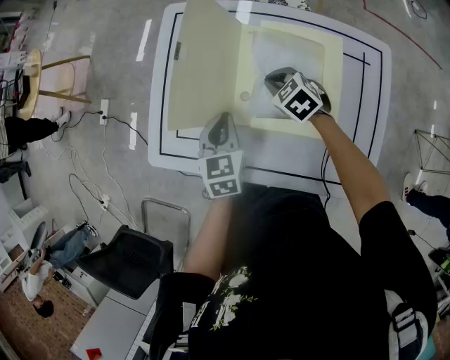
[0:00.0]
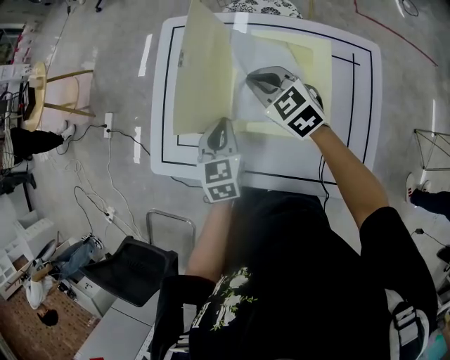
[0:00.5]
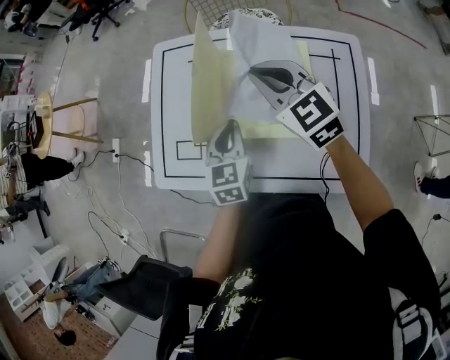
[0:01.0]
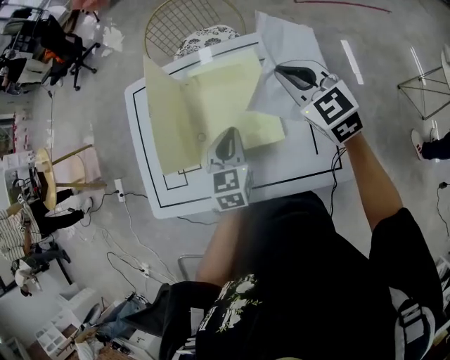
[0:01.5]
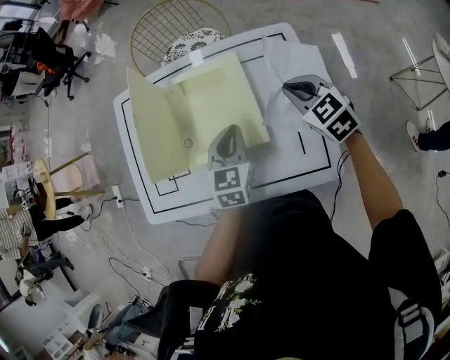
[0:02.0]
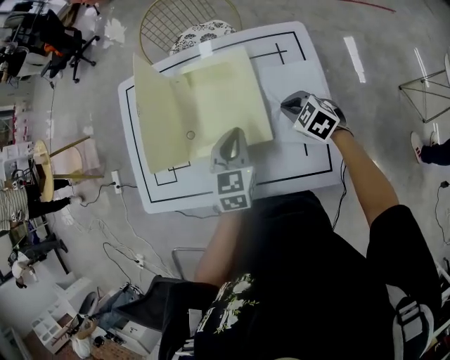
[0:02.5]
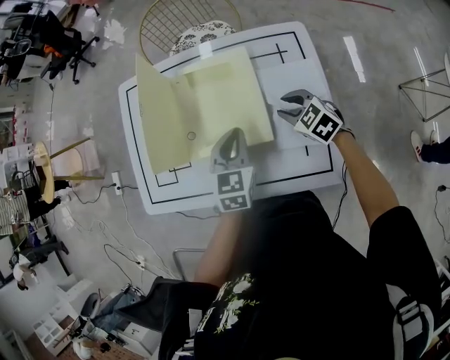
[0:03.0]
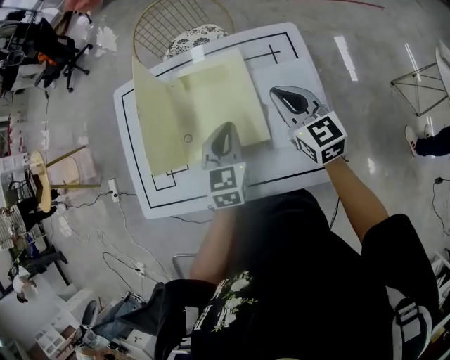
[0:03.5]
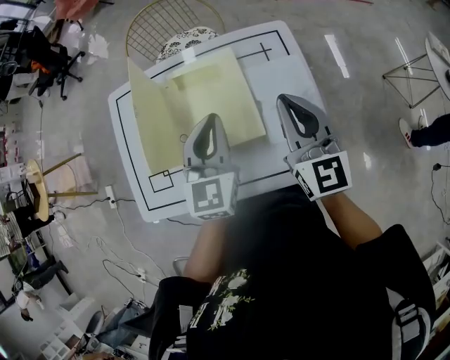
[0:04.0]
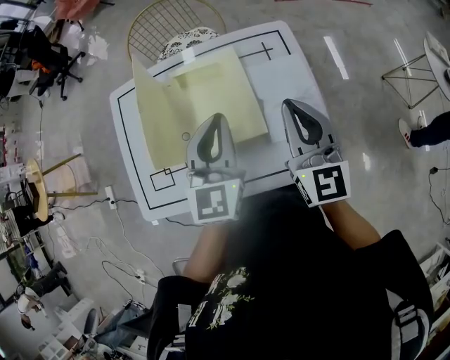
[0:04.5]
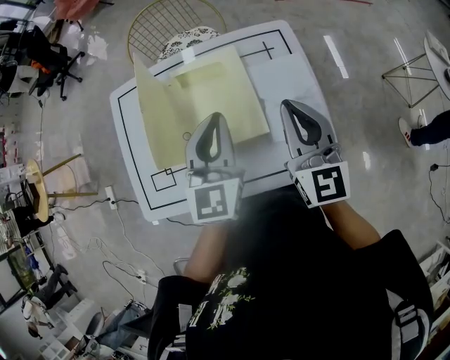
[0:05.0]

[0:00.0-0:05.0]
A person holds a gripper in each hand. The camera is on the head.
0:00.0 to 0:02.5: The left gripper shifts by roughly 20 cm, and changes its angle by approximately 20 degrees, while the right gripper reaches roughly 25 cm upward, then returns.
0:02.5 to 0:05.0: The left gripper moves upward, about 15 cm, and turns by some 20 degrees, while the right gripper is displaced upward by some 25 cm, tilts its fingers roughly 50 degrees upward, and opens, then closes again.

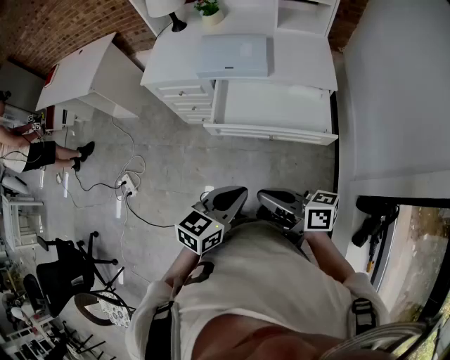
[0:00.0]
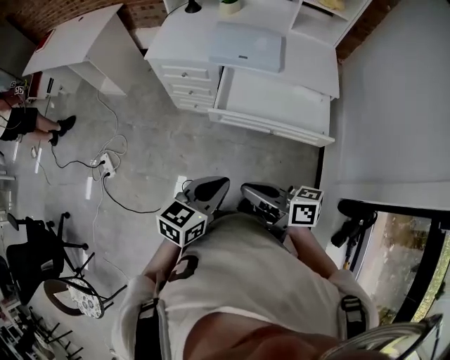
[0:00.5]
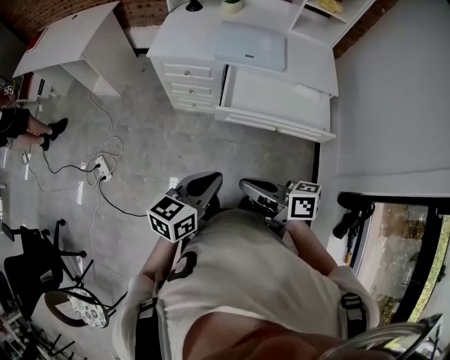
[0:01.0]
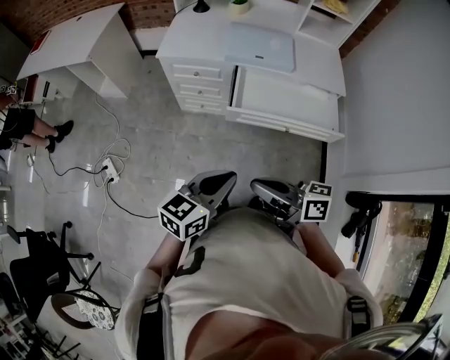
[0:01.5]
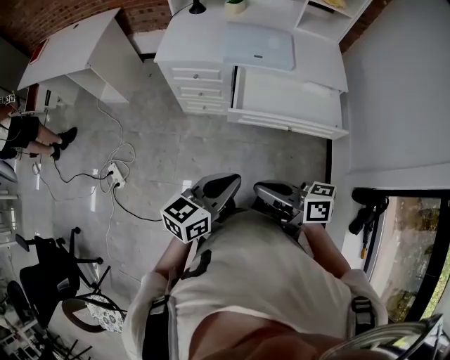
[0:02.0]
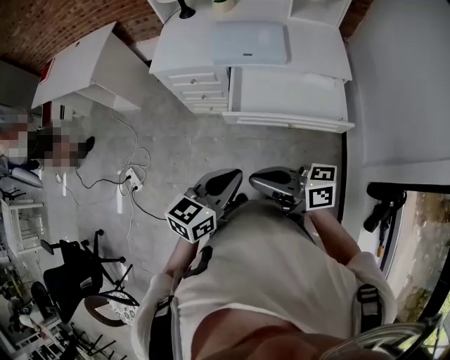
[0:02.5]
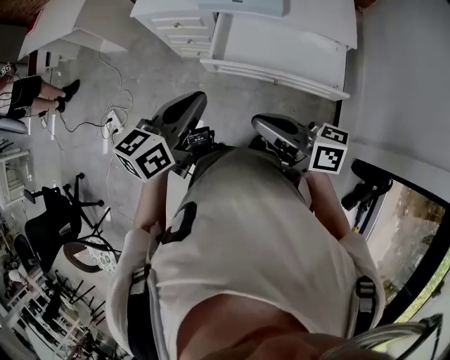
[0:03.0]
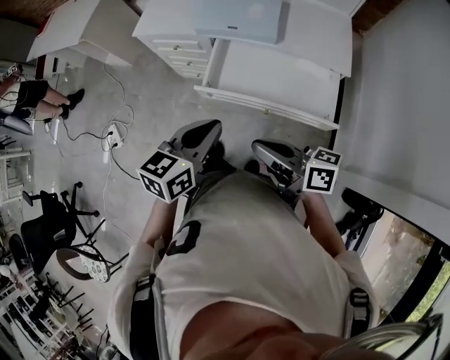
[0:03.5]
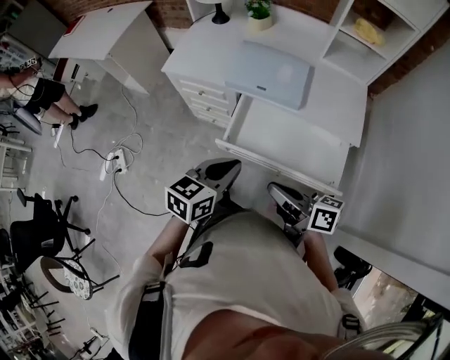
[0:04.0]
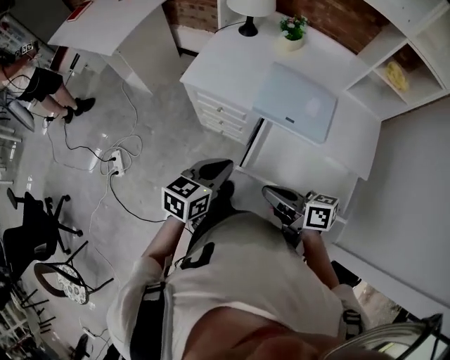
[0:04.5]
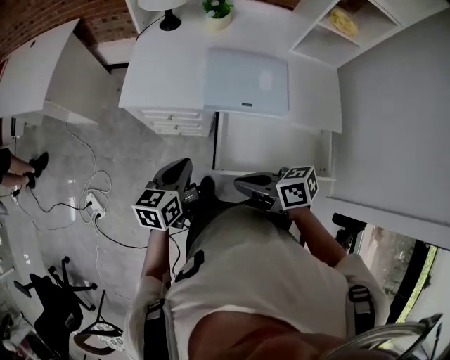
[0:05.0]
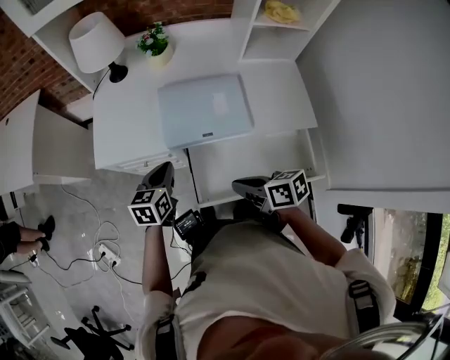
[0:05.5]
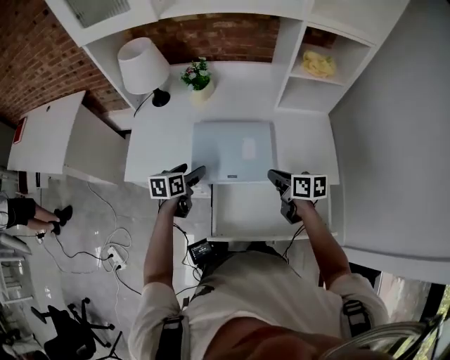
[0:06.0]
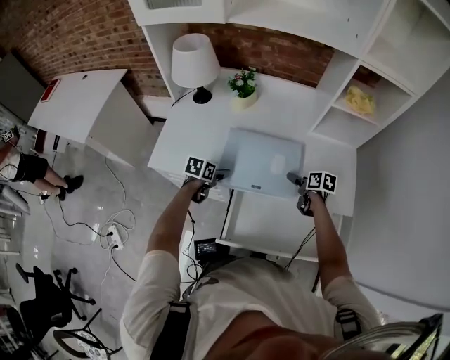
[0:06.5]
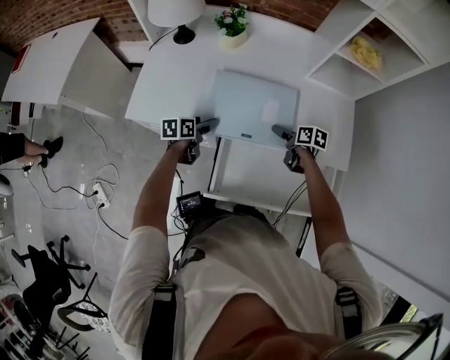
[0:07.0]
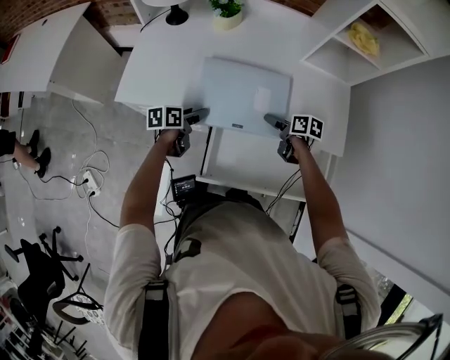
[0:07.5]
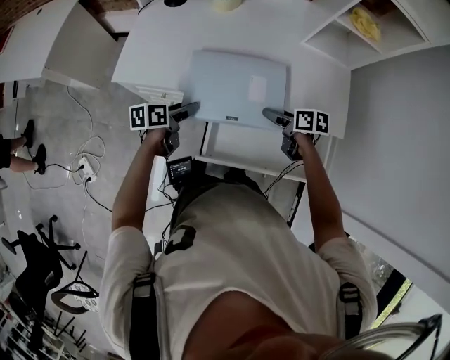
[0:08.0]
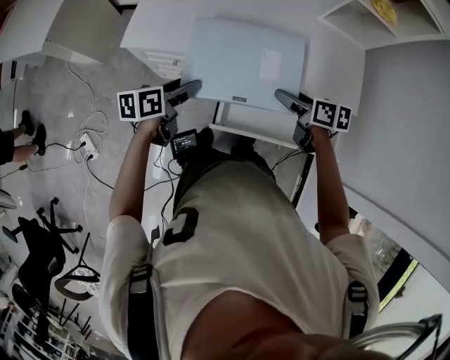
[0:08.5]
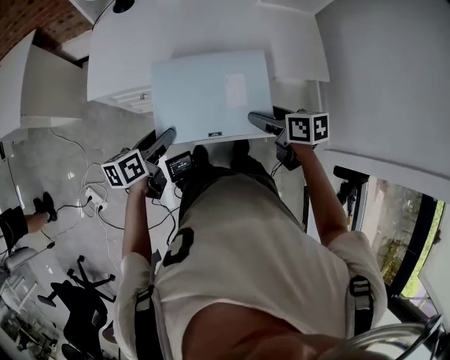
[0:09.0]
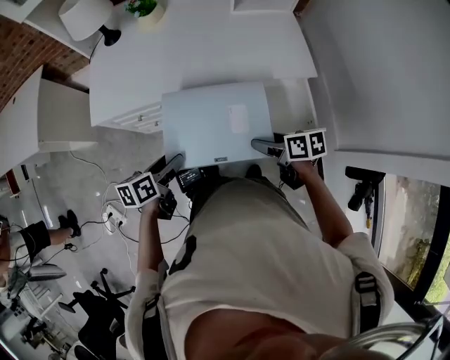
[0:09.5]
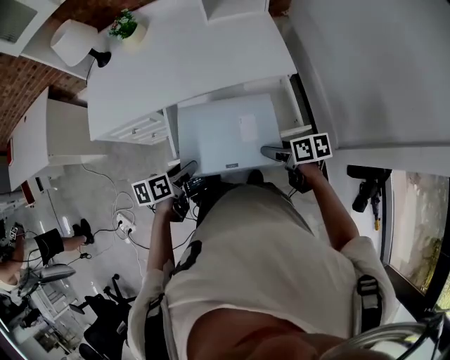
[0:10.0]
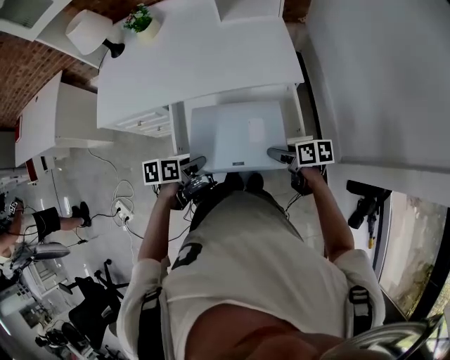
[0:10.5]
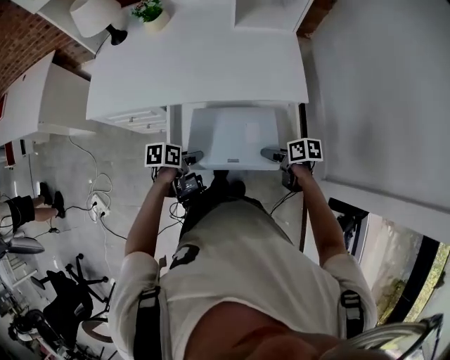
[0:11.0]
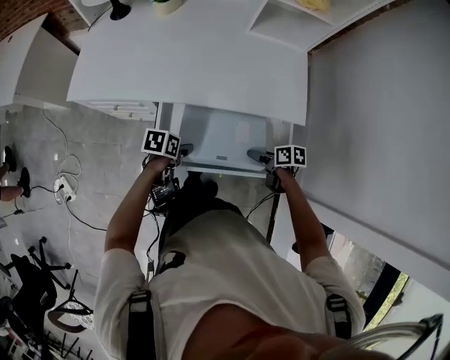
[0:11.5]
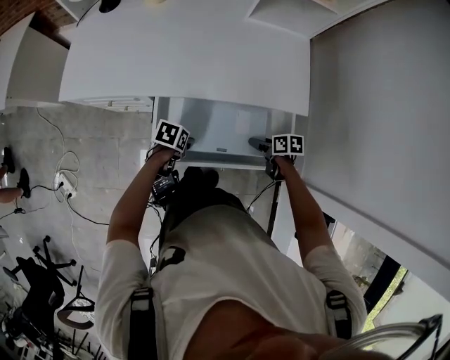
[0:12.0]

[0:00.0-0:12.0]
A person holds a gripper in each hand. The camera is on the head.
0:00.0 to 0:02.0: Both grippers move to the left, roughly 20 cm.
0:02.0 to 0:04.0: The left gripper is displaced forward and to the right by some 25 cm; the right gripper is displaced to the right and forward by roughly 25 cm.
0:04.0 to 0:06.0: The grippers both shift forward by about 35 cm. The left gripper opens. The right gripper swivels roughly 40 degrees.
0:06.0 to 0:08.0: The left gripper is displaced backward and downward by roughly 10 cm, and changes its angle by about 20 degrees. Meanwhile the right gripper travels downward by some 10 cm, and opens.
0:08.0 to 0:10.0: Both grippers travel together backward and to the right, approximately 30 cm.
0:10.0 to 0:12.0: The left gripper shifts roughly 15 cm downward, and swivels about 30 degrees. Meanwhile the right gripper changes place by about 20 cm.

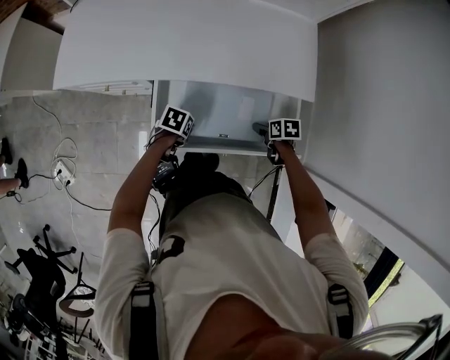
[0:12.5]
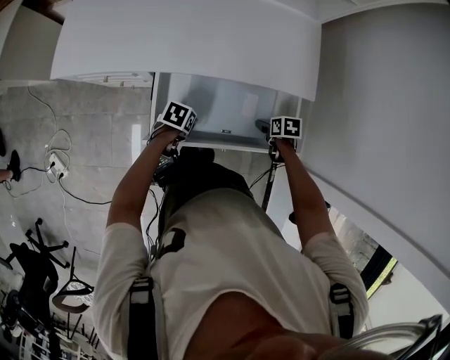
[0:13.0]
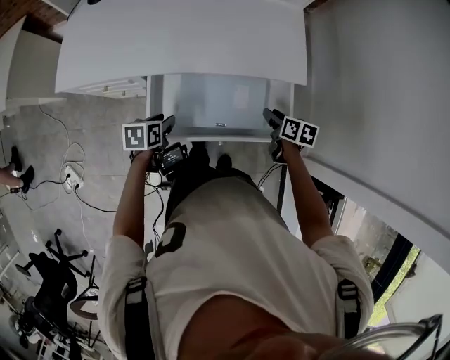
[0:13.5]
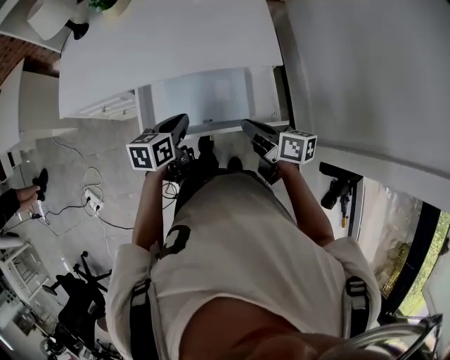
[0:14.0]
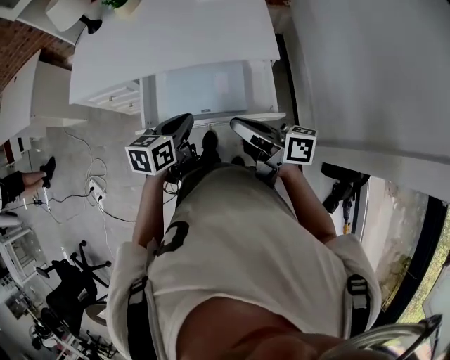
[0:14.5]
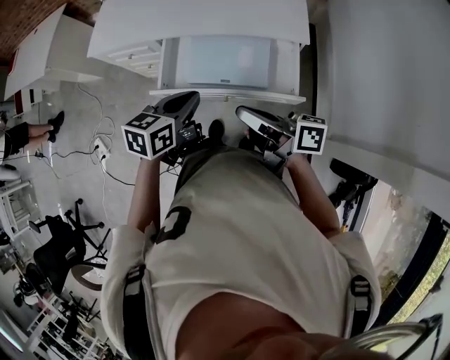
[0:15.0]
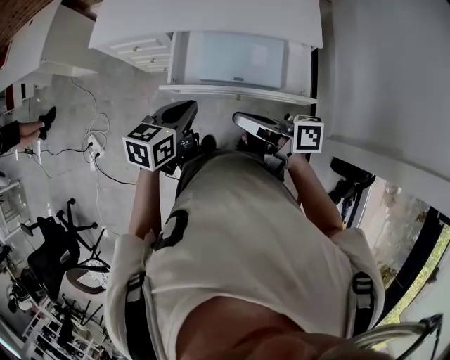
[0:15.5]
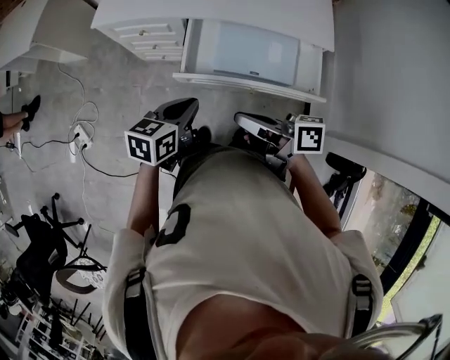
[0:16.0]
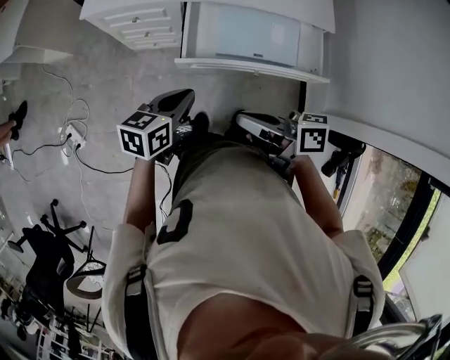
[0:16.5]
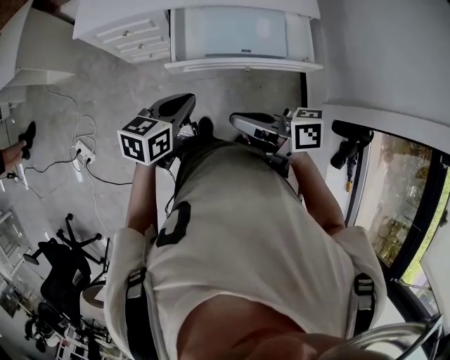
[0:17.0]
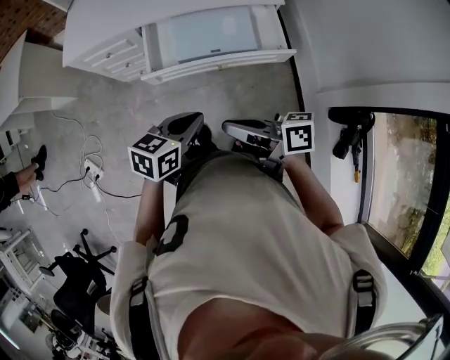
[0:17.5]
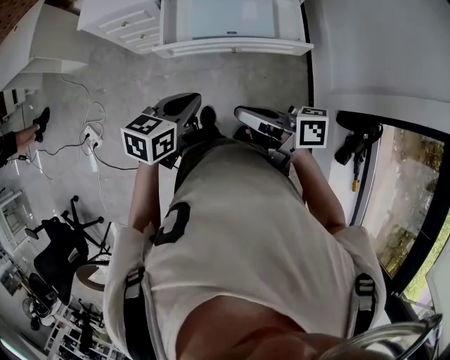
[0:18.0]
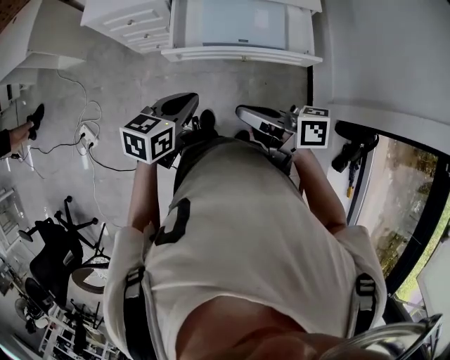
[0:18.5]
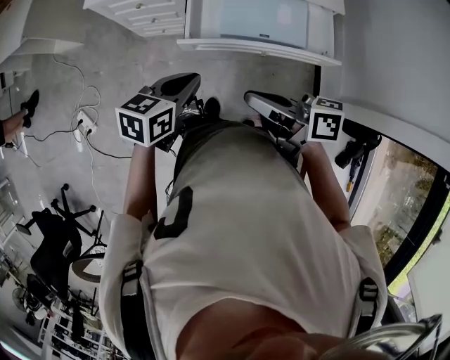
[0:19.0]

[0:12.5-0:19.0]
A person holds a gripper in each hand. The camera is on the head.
0:12.5 to 0:14.5: The two grippers go about 30 cm upward. The right gripper points its fingers approximately 70 degrees further upward, and closes; the left gripper tilts its fingers about 30 degrees upward, and closes its fingers.
0:14.5 to 0:17.0: Both grippers travel together to the left and backward, about 25 cm.
0:17.0 to 0:19.0: The right gripper reaches approximately 10 cm backward, then returns, while the left gripper reaches roughly 10 cm to the right, then returns.

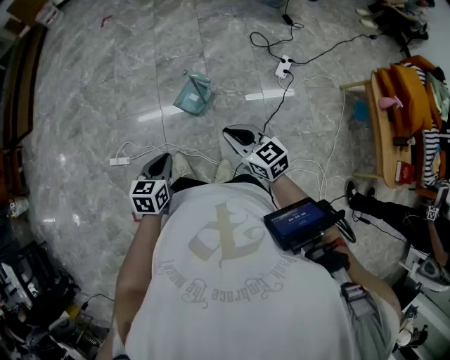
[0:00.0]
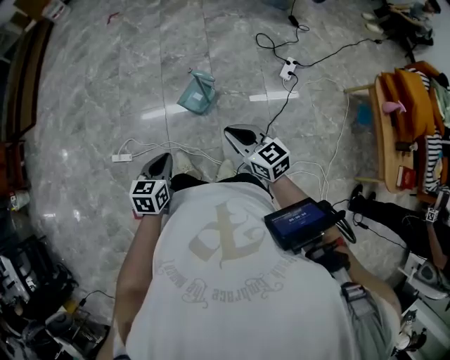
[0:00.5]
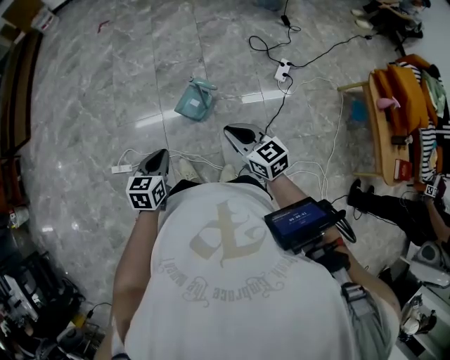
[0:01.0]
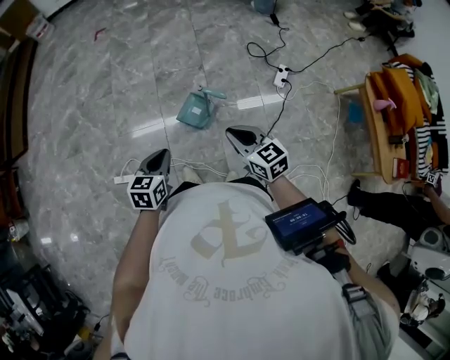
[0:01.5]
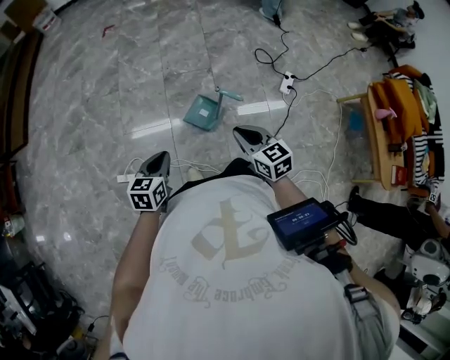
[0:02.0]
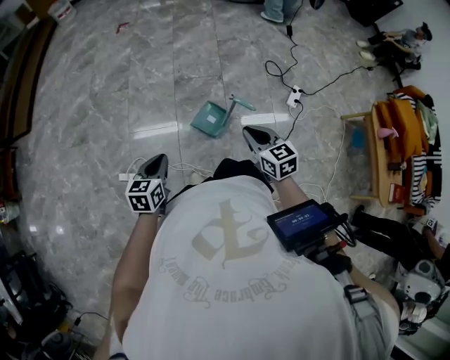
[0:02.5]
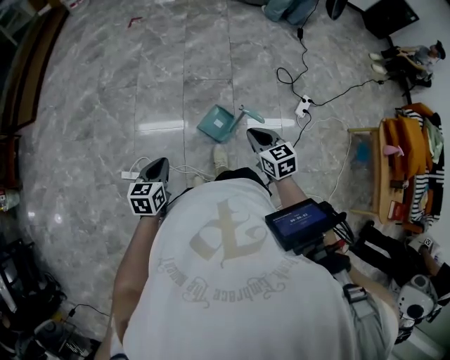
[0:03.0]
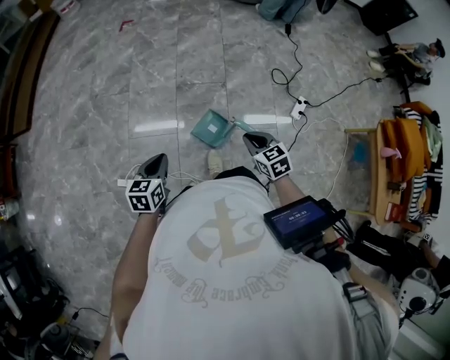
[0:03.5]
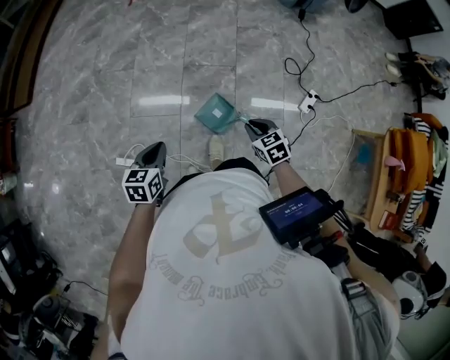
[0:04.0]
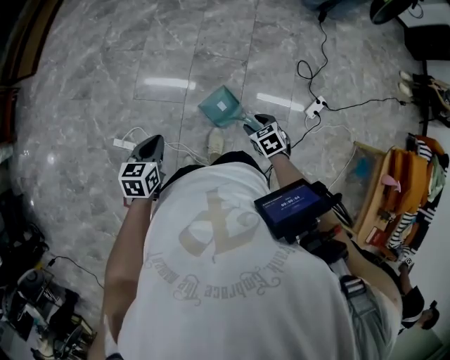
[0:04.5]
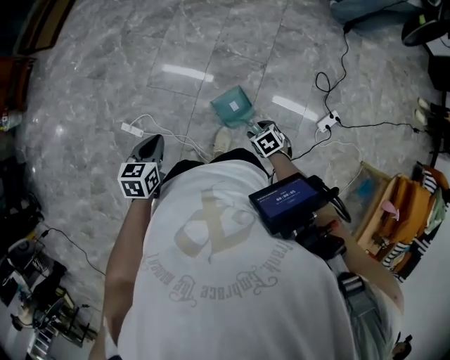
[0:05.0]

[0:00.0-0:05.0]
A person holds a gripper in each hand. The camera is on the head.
0:00.0 to 0:02.5: The right gripper moves forward and to the left, approximately 15 cm; the left gripper is displaced to the left and forward by roughly 20 cm.
0:02.5 to 0:05.0: The left gripper ends up approximately 10 cm from where it was, and changes its angle by roughly 20 degrees, while the right gripper moves downward, some 25 cm, angles its fingers downward, by about 40 degrees, and opens.
